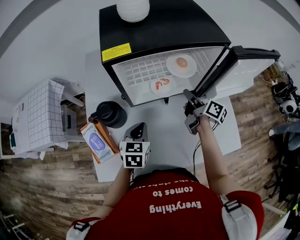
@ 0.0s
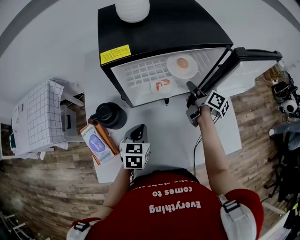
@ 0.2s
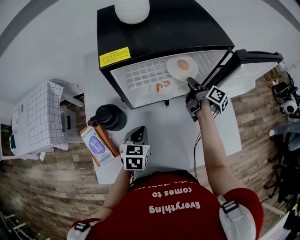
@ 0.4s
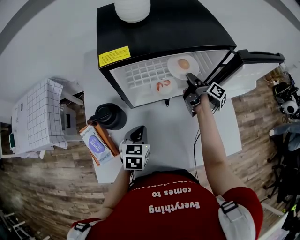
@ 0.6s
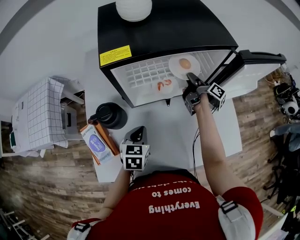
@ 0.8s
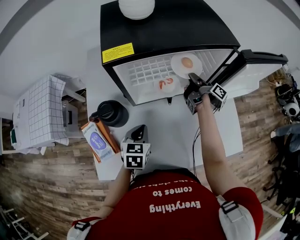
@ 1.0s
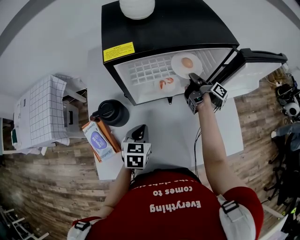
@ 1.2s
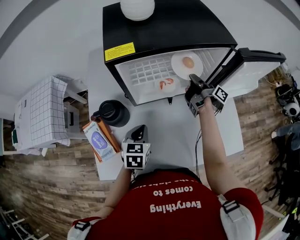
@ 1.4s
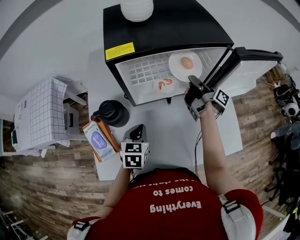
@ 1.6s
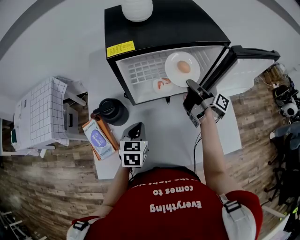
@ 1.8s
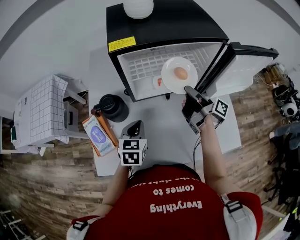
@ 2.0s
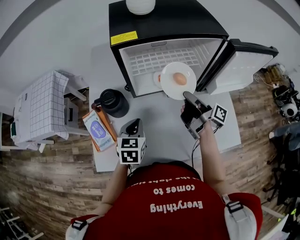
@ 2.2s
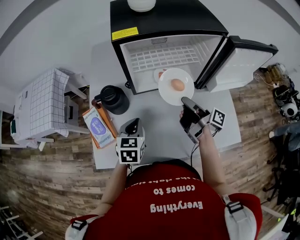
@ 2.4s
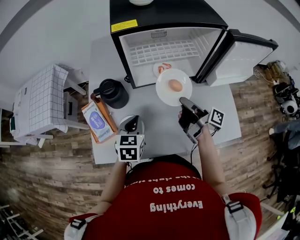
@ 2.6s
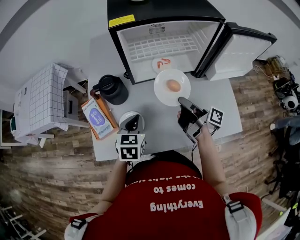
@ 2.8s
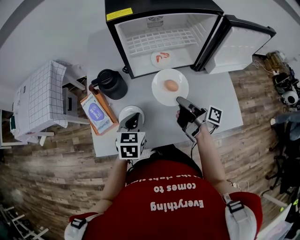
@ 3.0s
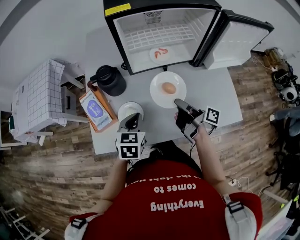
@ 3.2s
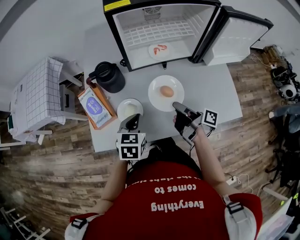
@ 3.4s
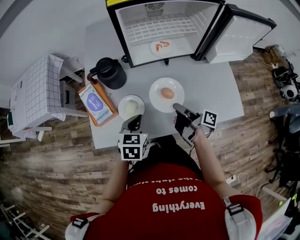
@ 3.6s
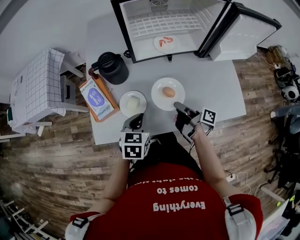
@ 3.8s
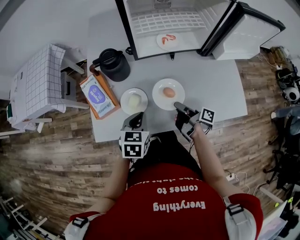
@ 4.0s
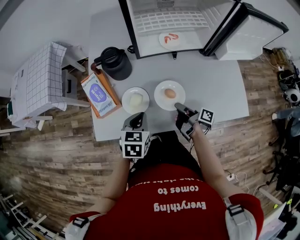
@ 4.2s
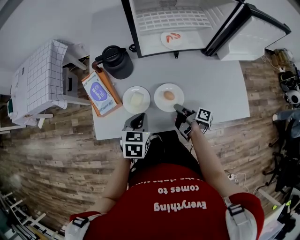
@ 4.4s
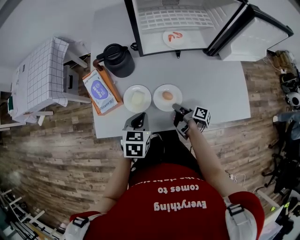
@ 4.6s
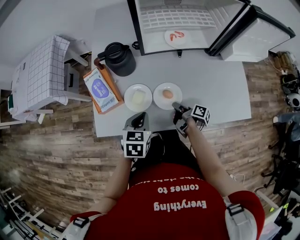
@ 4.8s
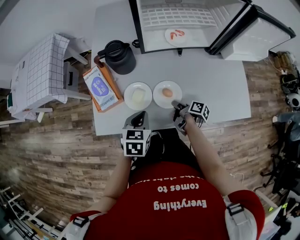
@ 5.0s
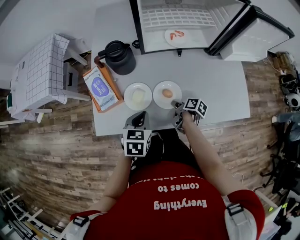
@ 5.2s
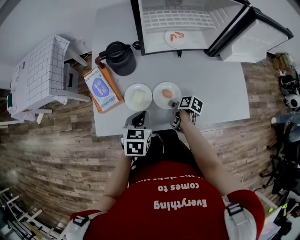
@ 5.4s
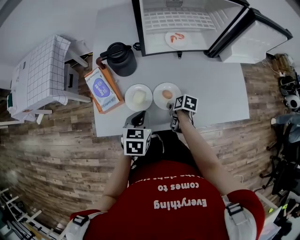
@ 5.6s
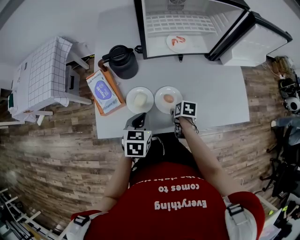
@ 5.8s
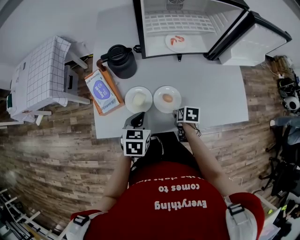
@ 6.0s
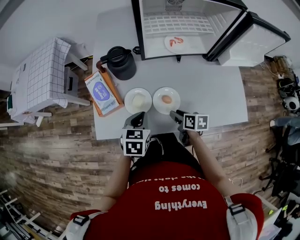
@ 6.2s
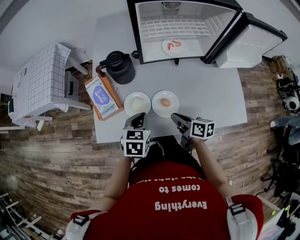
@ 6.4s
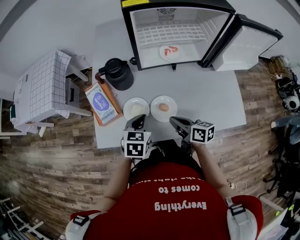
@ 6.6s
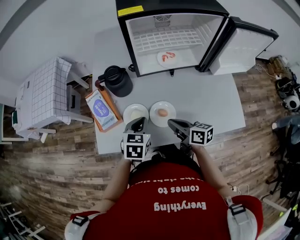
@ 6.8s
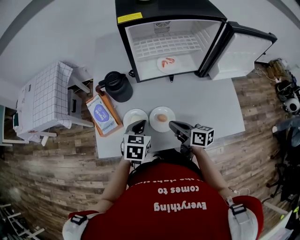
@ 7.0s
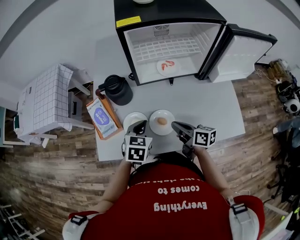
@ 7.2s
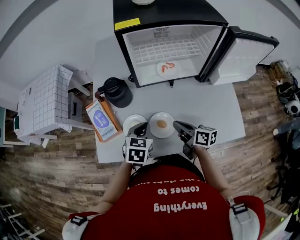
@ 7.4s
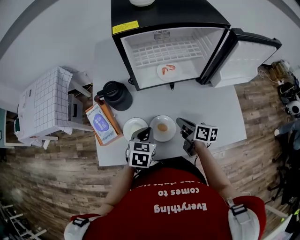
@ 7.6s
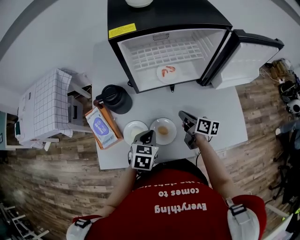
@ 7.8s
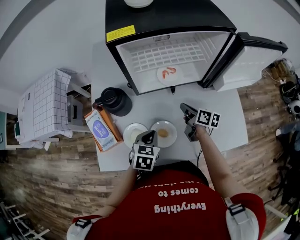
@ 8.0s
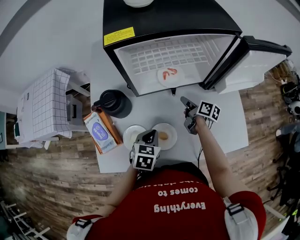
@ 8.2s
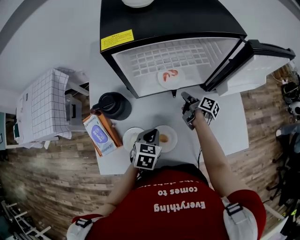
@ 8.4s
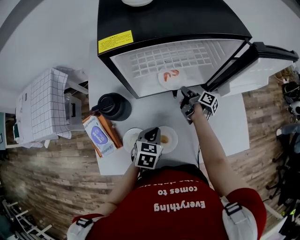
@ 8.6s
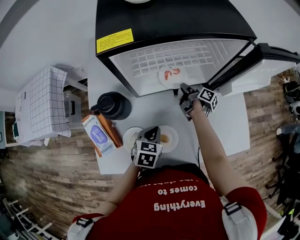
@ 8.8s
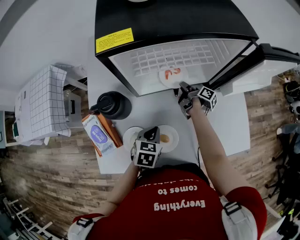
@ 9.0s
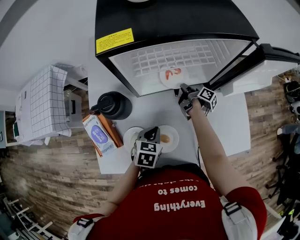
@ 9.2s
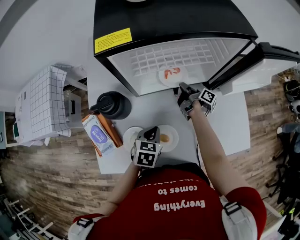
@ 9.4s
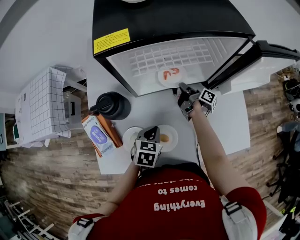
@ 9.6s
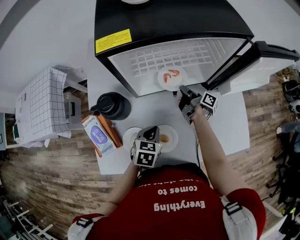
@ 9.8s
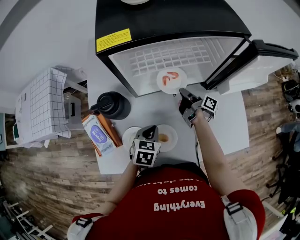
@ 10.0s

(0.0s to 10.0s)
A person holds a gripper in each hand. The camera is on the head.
1.4s - 2.8s: The left gripper moves some 10 cm.
2.8s - 4.2s: The left gripper ends up about 10 cm from where it was.
5.8s - 7.2s: The left gripper changes place by roughly 10 cm.
7.2s - 8.6s: The left gripper ends up about 10 cm from where it was.

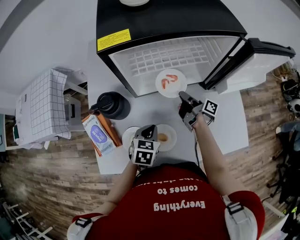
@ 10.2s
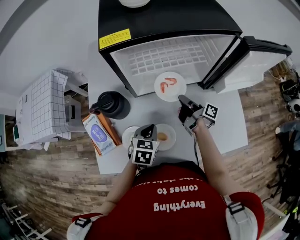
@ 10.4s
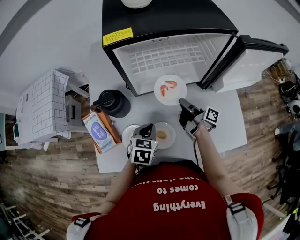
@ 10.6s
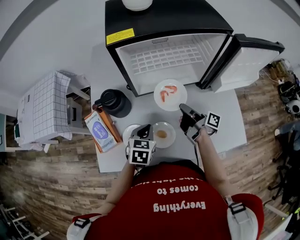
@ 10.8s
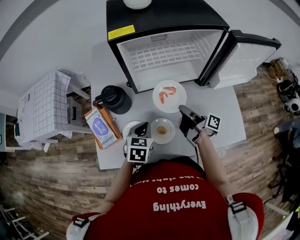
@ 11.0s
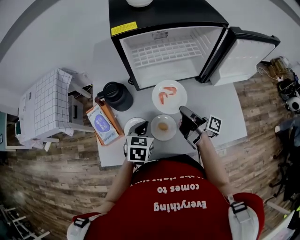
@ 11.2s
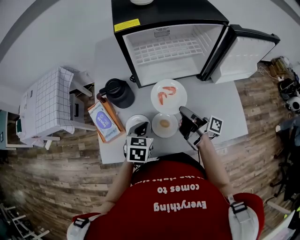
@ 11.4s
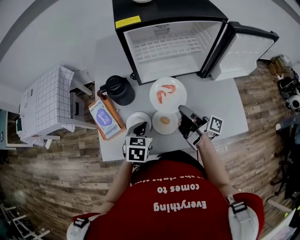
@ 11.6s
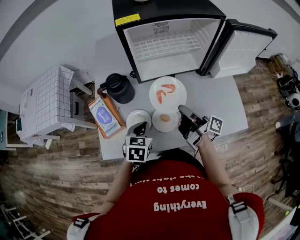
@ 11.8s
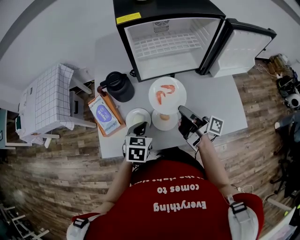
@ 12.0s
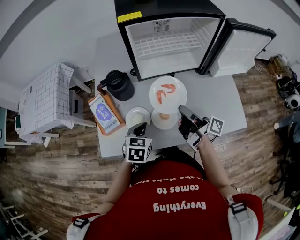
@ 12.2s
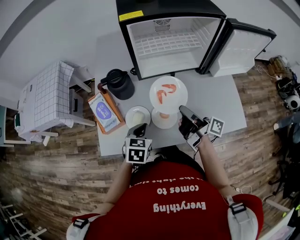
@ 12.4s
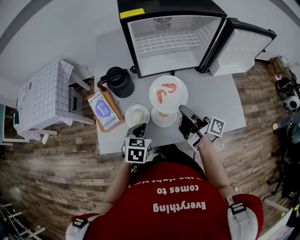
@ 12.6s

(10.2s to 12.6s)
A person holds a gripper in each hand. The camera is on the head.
10.2s - 11.4s: The left gripper shifts by approximately 10 cm.
11.4s - 12.6s: The left gripper shifts by approximately 5 cm.

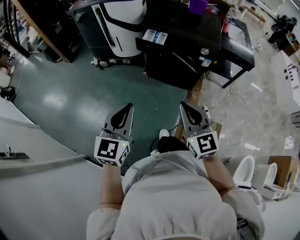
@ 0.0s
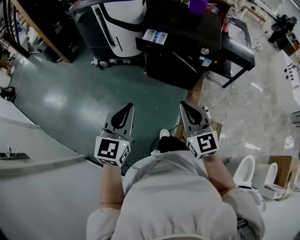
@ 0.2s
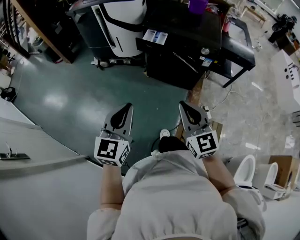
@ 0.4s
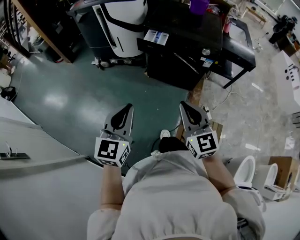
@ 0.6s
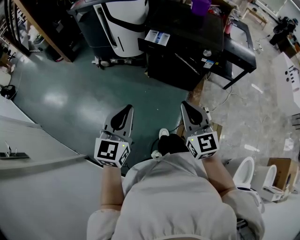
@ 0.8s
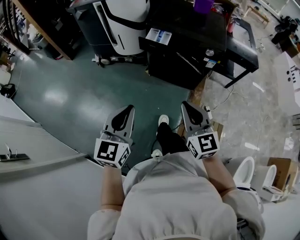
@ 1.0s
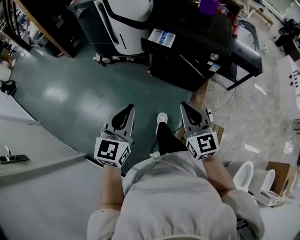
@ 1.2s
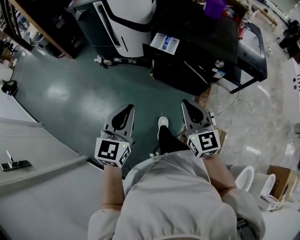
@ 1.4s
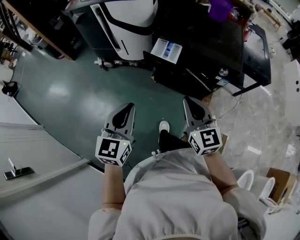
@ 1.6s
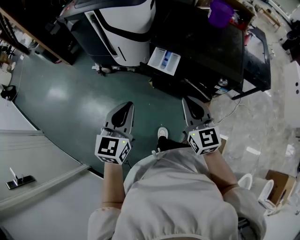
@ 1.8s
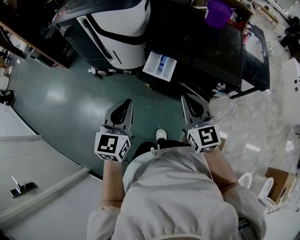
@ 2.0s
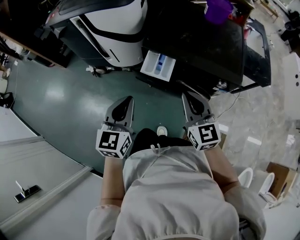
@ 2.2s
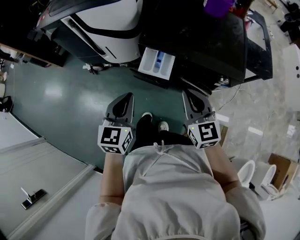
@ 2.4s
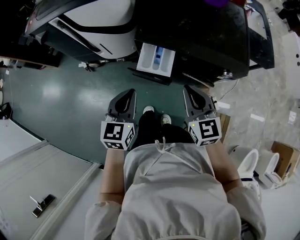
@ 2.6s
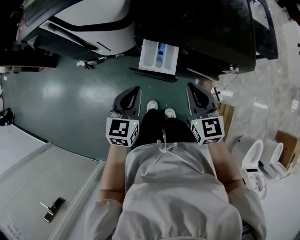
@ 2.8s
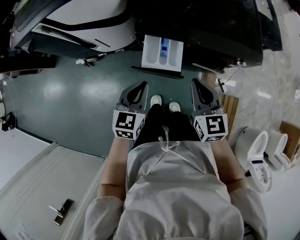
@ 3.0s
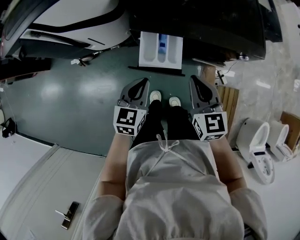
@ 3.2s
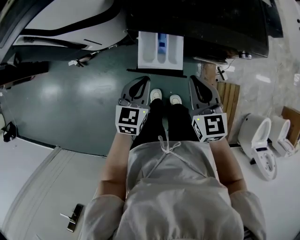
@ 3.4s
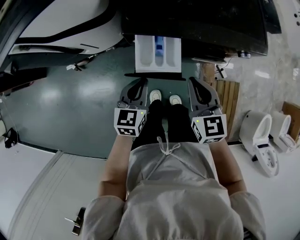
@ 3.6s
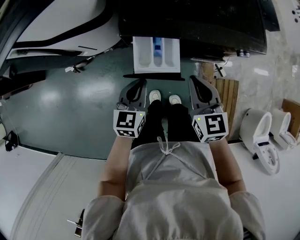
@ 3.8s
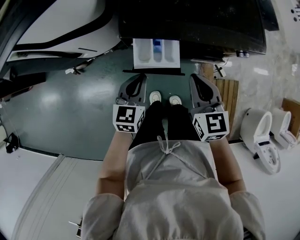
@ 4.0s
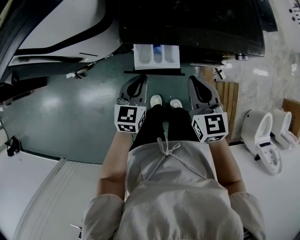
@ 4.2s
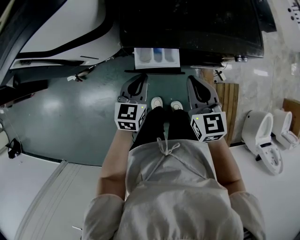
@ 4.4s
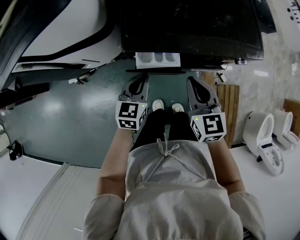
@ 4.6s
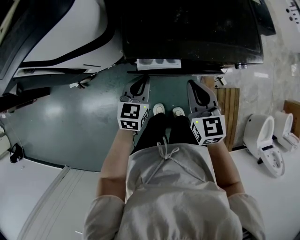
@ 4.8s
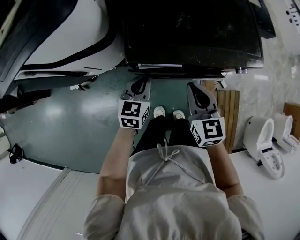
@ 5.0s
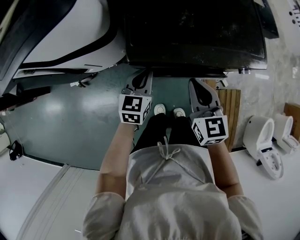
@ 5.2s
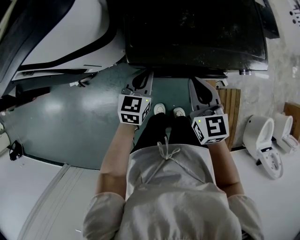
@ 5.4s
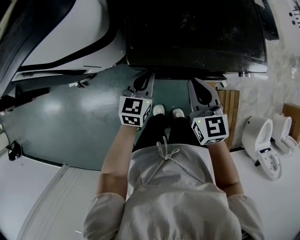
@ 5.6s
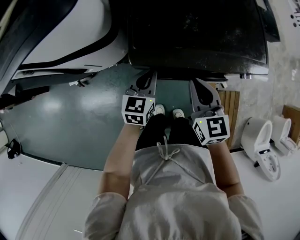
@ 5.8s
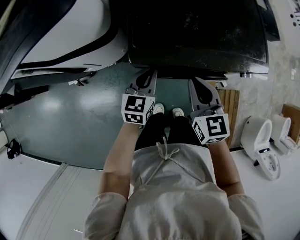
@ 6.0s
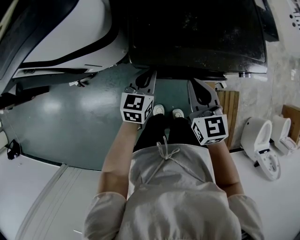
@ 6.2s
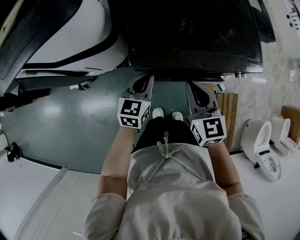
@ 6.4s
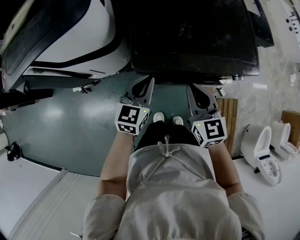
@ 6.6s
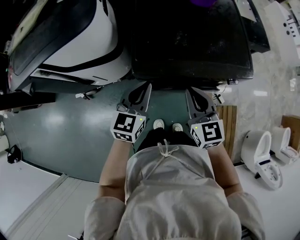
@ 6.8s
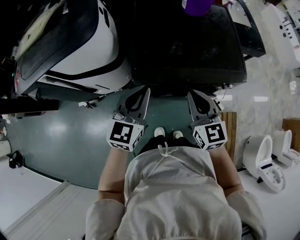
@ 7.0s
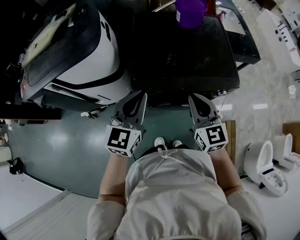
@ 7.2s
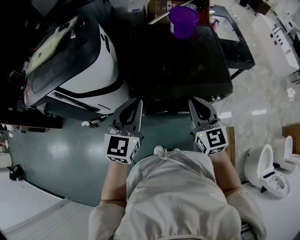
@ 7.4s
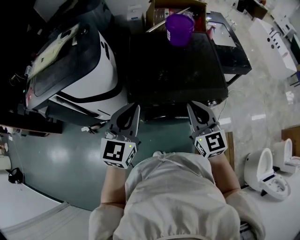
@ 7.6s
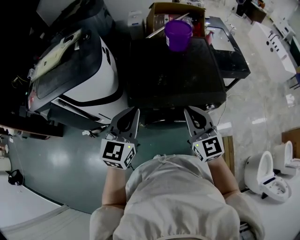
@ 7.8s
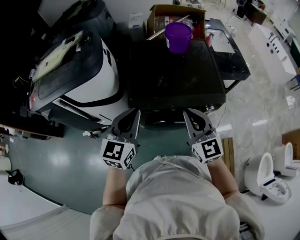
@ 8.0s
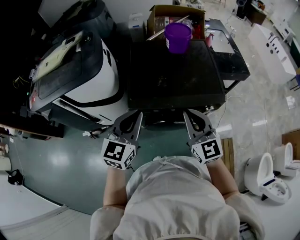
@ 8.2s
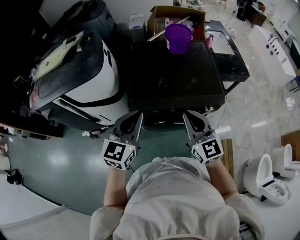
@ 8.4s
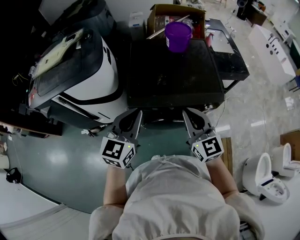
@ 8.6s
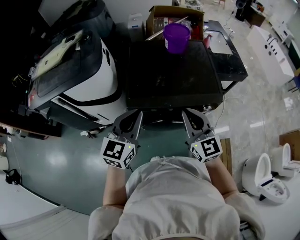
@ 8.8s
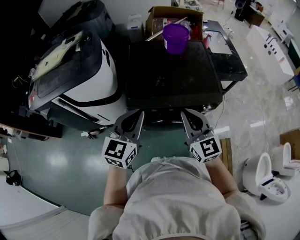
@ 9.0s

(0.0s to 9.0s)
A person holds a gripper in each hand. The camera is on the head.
0.0s - 1.6s: The two grippers go roughly 25 cm forward.
1.6s - 3.0s: The two grippers go some 30 cm forward and downward. The right gripper turns by approximately 20 degrees, while the left gripper turns by roughly 20 degrees.
3.0s - 4.4s: The left gripper travels forward and downward by about 10 cm; the right gripper changes place by approximately 5 cm.
4.4s - 6.0s: Both grippers move forward, roughly 5 cm.
6.0s - 7.6s: The right gripper heads upward and to the right, covering approximately 20 cm, and changes its angle by some 20 degrees; the left gripper moves upward, approximately 30 cm, and turns by roughly 20 degrees.
7.6s - 9.0s: The grippers stay close to where they were, moving slightly.

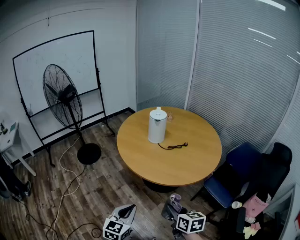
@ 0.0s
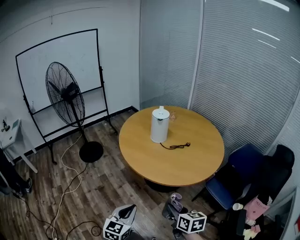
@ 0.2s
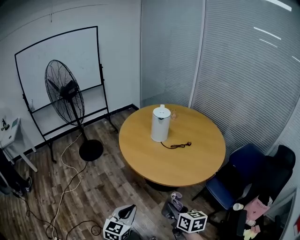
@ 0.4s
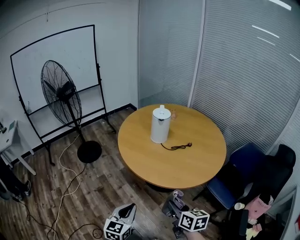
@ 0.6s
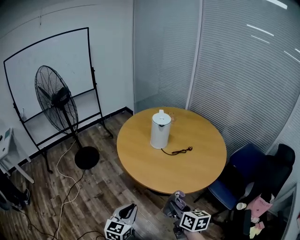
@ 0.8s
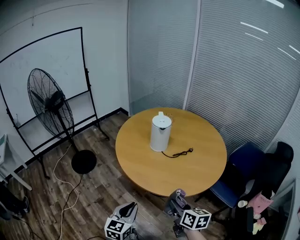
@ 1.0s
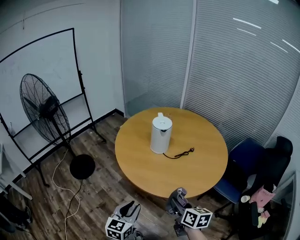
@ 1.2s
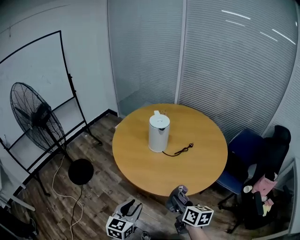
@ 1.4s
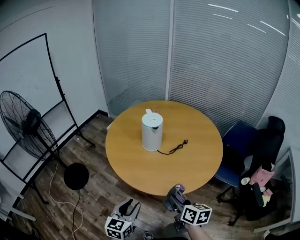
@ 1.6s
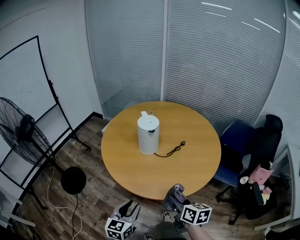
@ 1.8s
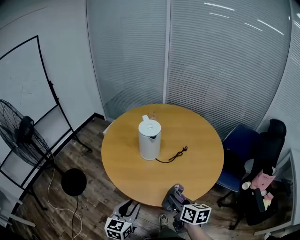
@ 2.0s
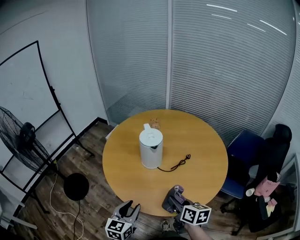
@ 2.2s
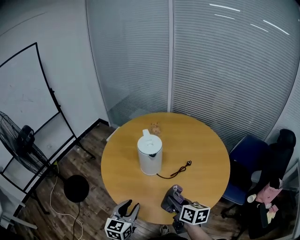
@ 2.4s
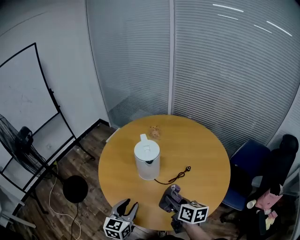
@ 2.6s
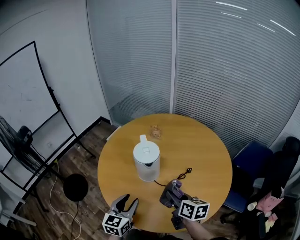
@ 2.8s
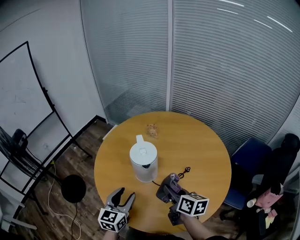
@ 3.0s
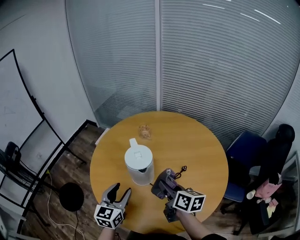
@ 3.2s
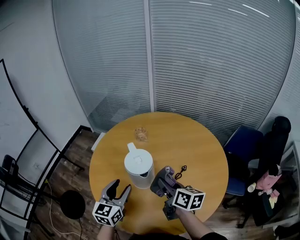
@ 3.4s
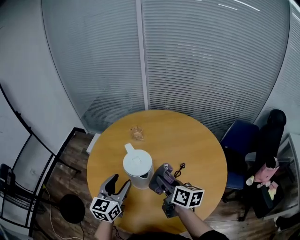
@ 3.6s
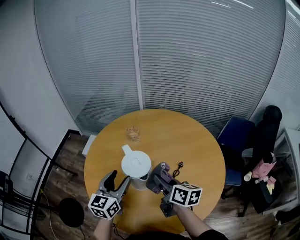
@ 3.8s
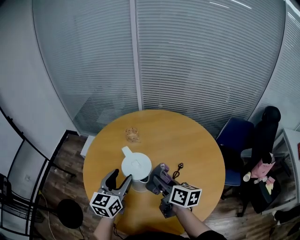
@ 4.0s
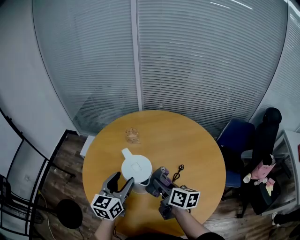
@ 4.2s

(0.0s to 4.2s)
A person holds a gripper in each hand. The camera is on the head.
0.0s - 1.4s: The grippers both shift forward and to the left by about 20 cm. The right gripper turns by some 20 degrees. Meanwhile the left gripper opens up.
1.4s - 2.8s: Both grippers move forward, approximately 25 cm.
2.8s - 4.2s: The left gripper travels forward by about 20 cm, rotates approximately 20 degrees, and opens. The right gripper travels forward by some 10 cm, and swivels some 20 degrees.
